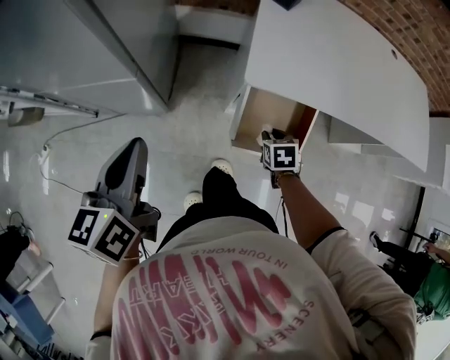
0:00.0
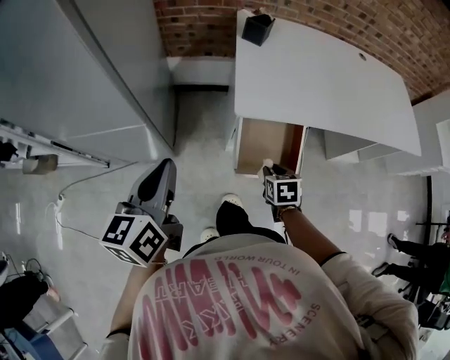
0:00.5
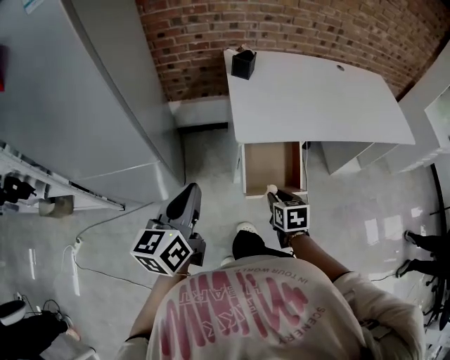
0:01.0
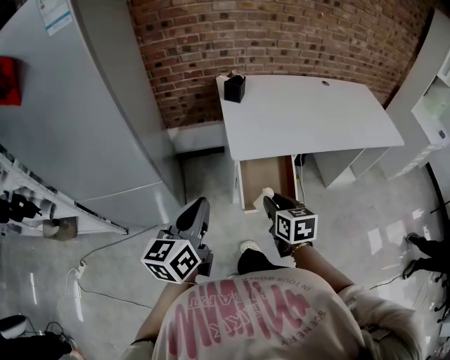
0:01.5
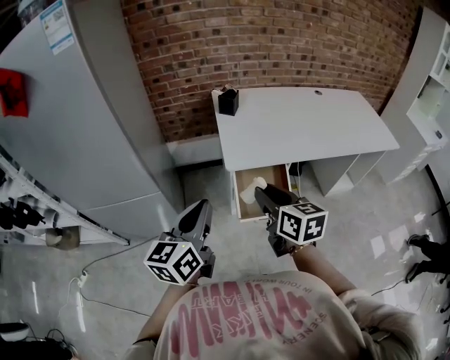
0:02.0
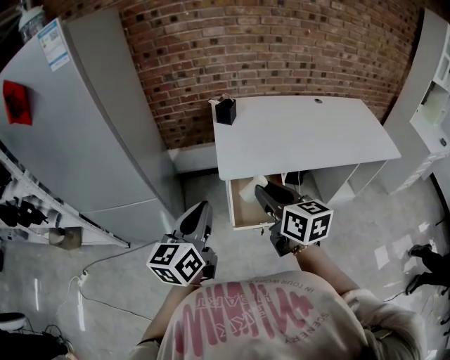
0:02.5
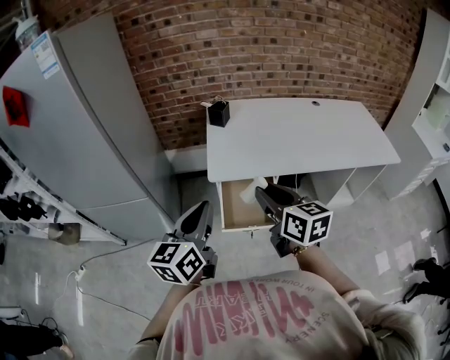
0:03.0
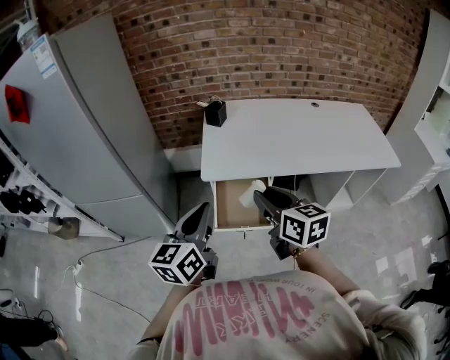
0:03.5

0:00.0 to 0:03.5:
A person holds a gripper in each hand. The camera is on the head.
0:00.0 to 0:02.0: The left gripper travels upward, to the right and backward by approximately 15 cm, and changes its angle by roughly 30 degrees, while the right gripper travels upward by about 35 cm, and tilts its fingers approximately 50 degrees upward.
0:02.0 to 0:03.5: The two grippers go some 15 cm to the right.

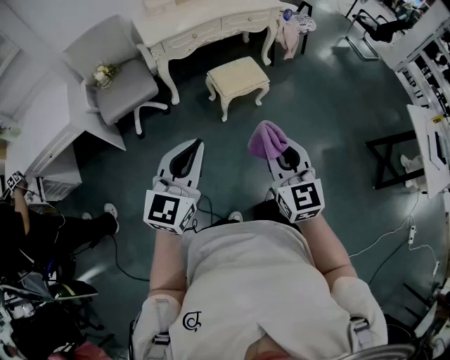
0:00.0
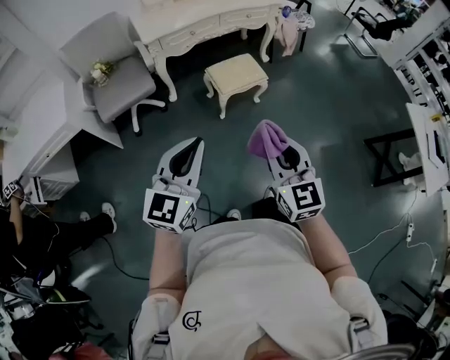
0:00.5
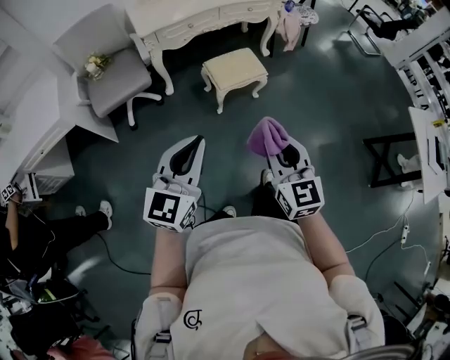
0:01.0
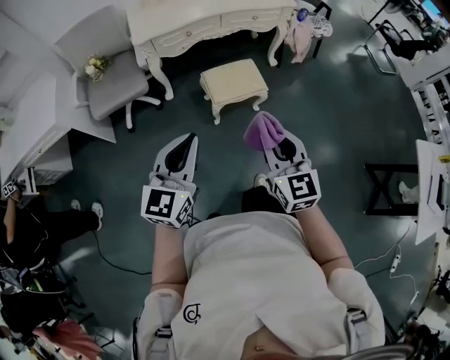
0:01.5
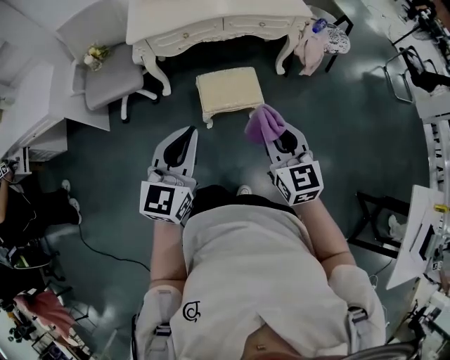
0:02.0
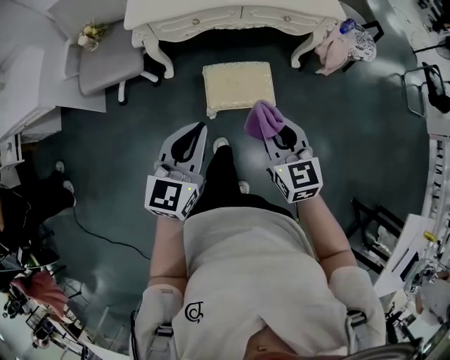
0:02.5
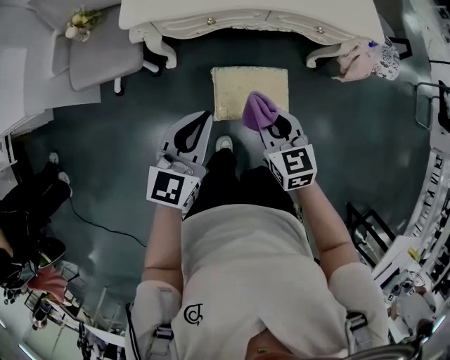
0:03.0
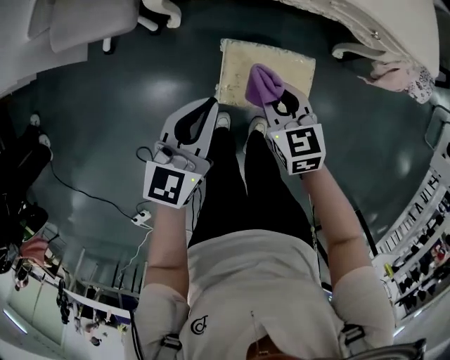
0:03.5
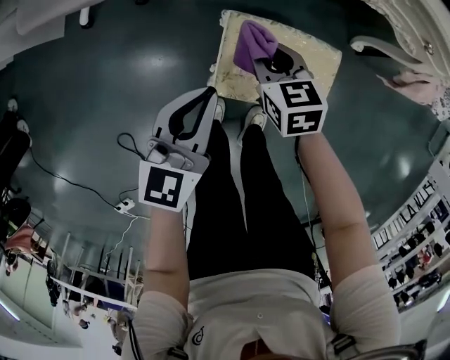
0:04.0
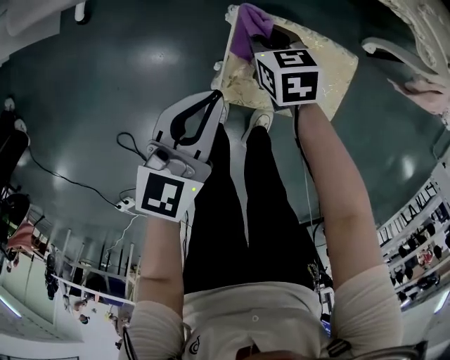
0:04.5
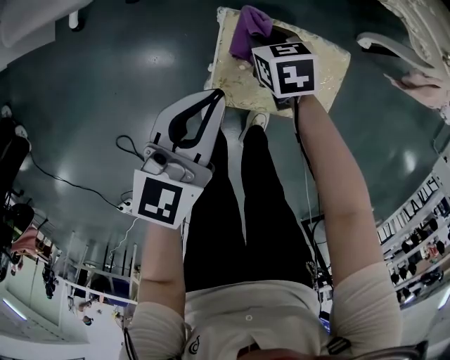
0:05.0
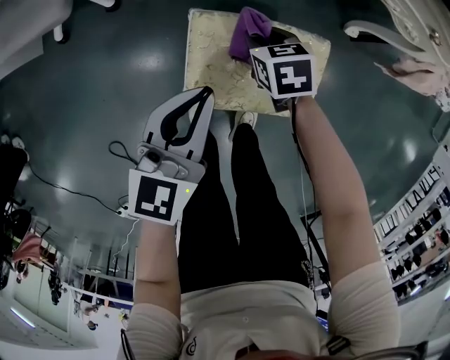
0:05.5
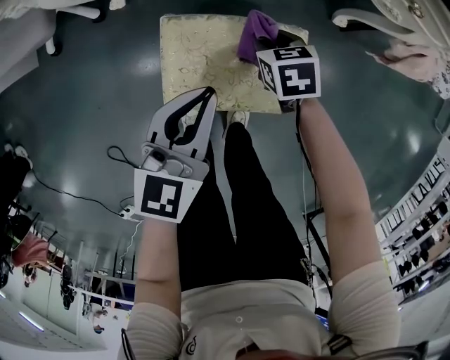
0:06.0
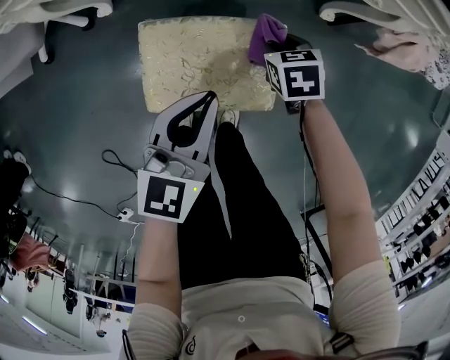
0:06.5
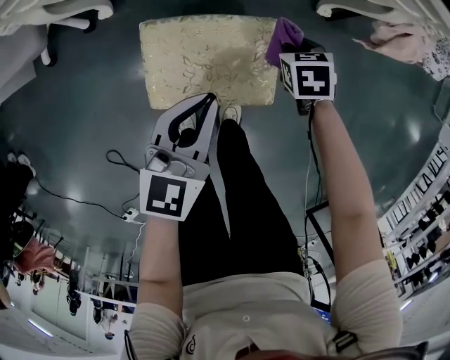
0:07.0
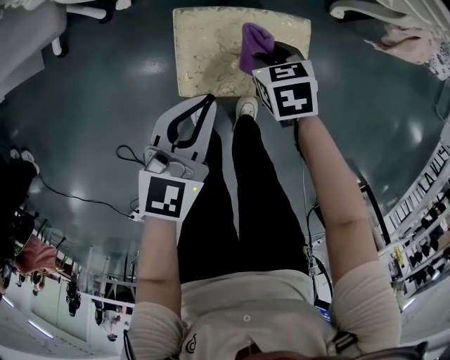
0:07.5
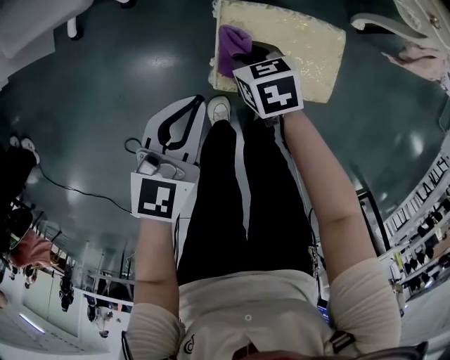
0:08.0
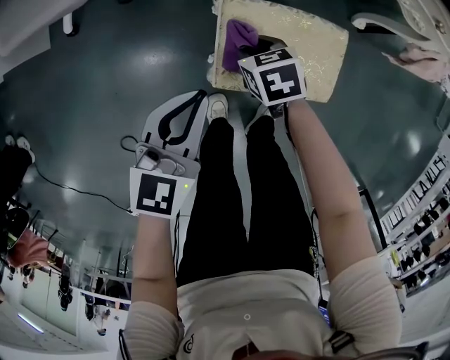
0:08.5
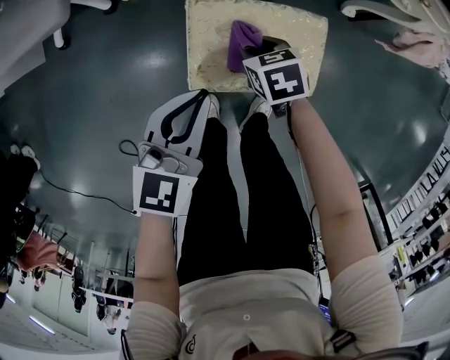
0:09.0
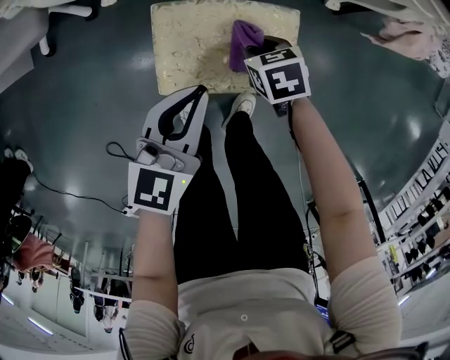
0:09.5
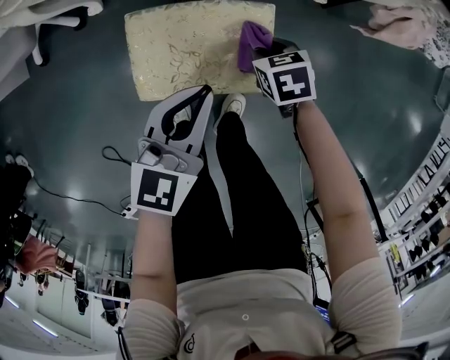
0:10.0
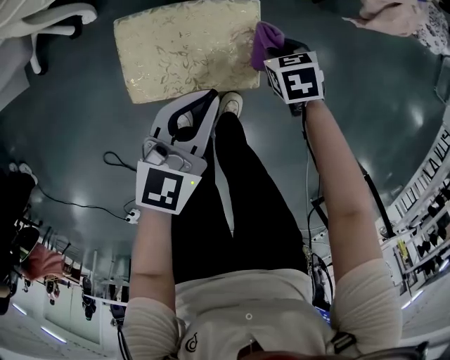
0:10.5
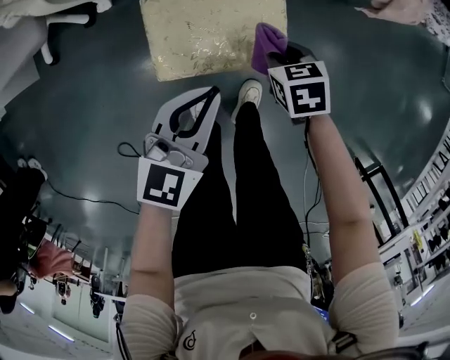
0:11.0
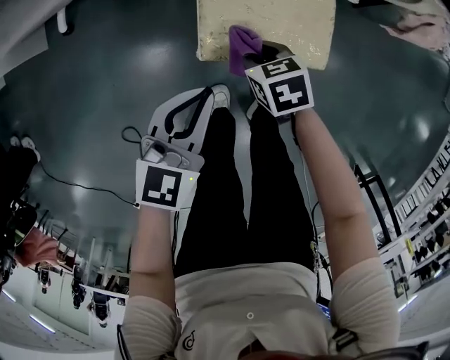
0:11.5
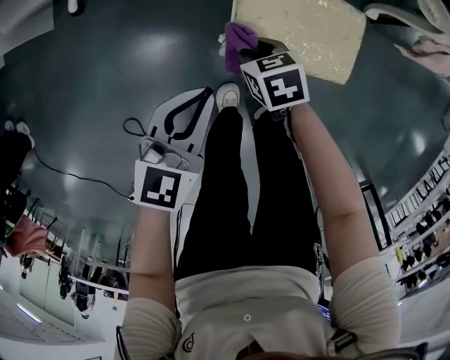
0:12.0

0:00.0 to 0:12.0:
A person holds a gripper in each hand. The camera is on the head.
0:00.0 to 0:02.0: Both grippers move forward and to the right, about 35 cm.
0:02.0 to 0:04.0: Both grippers move downward and forward, about 60 cm. The right gripper tilts its fingers some 30 degrees downward. The left gripper swivels about 20 degrees.
0:04.0 to 0:06.0: The right gripper is displaced to the right and downward by approximately 20 cm, and changes its angle by some 20 degrees; the left gripper heads to the right, covering some 15 cm.
0:06.0 to 0:08.0: The two grippers go approximately 20 cm to the left and backward.
0:08.0 to 0:10.0: Both grippers move to the right, approximately 25 cm.
0:10.0 to 0:12.0: The left gripper goes some 25 cm to the left and backward; the right gripper moves to the left, about 25 cm.

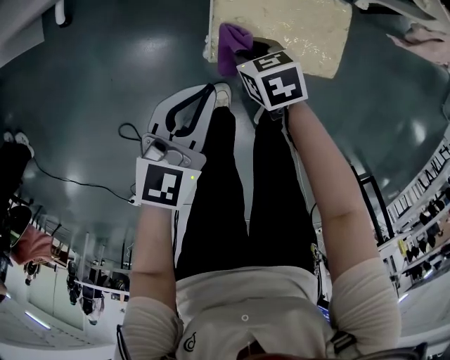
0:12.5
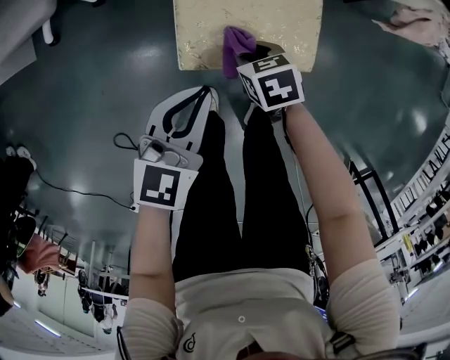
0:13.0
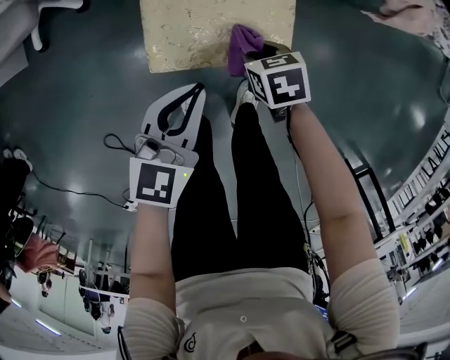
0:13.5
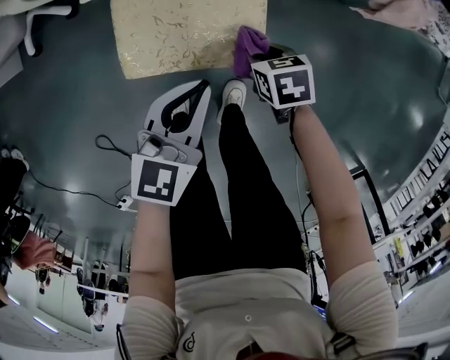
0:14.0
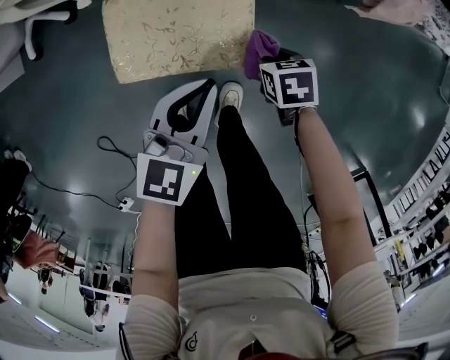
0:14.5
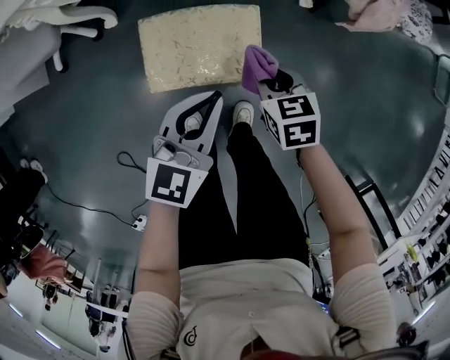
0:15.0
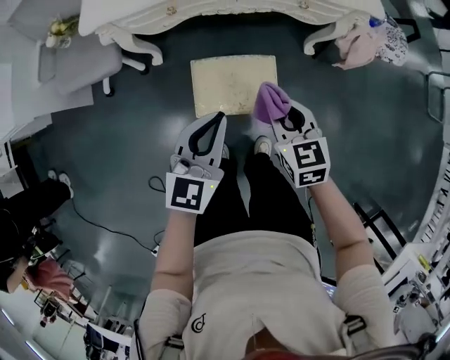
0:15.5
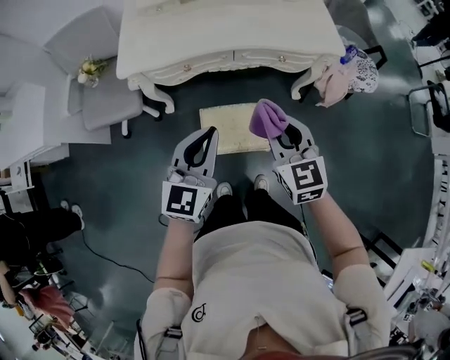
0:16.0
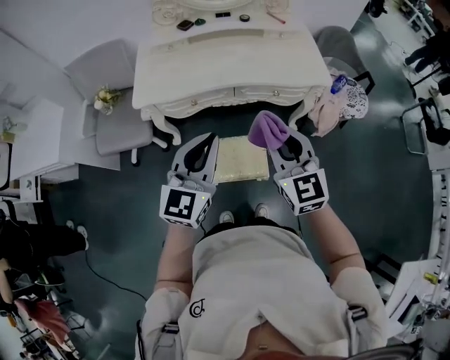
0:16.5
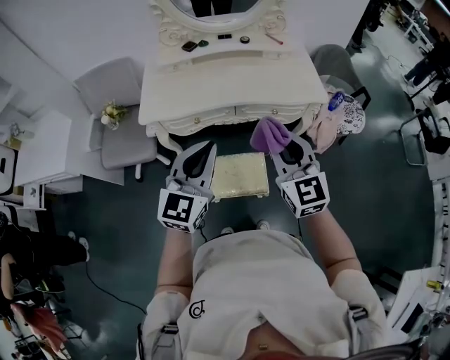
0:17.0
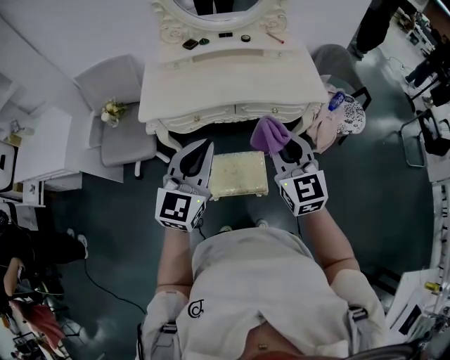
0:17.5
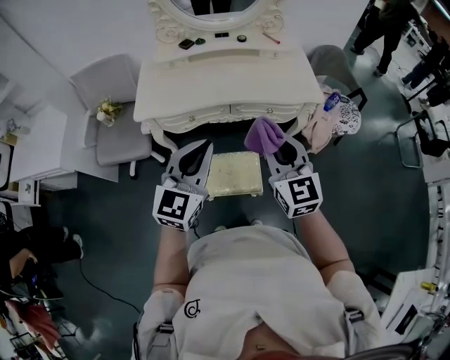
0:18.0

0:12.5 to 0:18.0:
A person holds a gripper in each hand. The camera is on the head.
0:12.5 to 0:14.5: Both grippers travel together to the right, roughly 30 cm.
0:14.5 to 0:16.0: The grippers both shift upward by approximately 50 cm. The left gripper swivels about 20 degrees. The right gripper points its fingers about 50 degrees further upward.
0:16.0 to 0:18.0: The grippers both shift upward by roughly 15 cm.

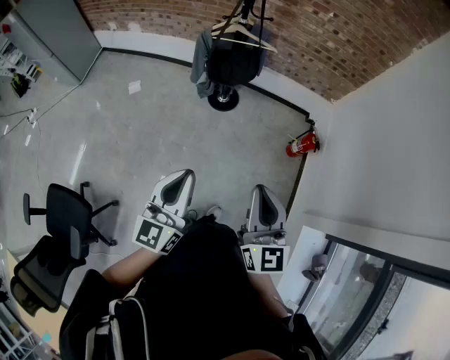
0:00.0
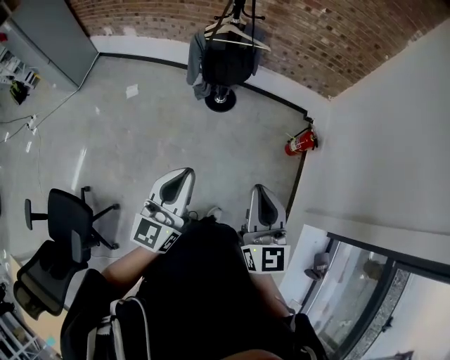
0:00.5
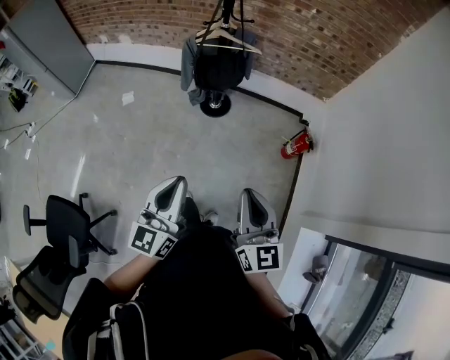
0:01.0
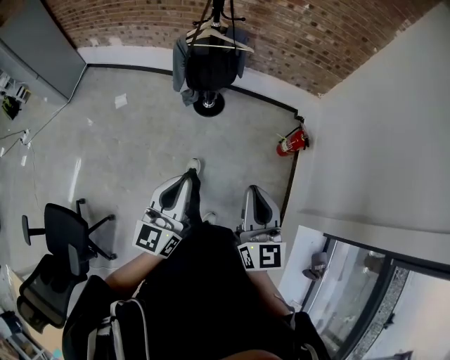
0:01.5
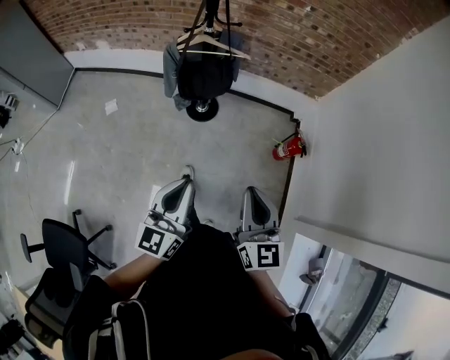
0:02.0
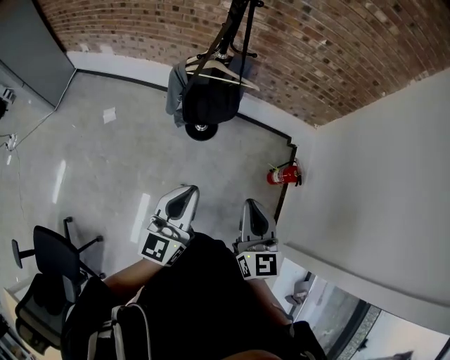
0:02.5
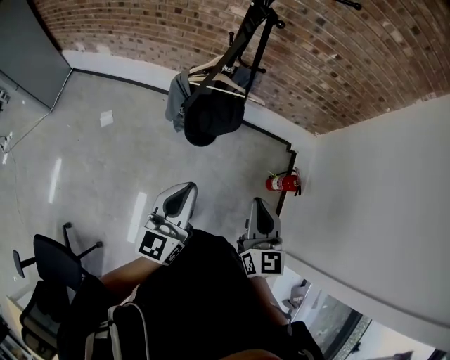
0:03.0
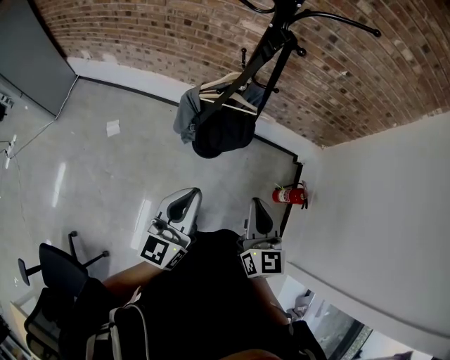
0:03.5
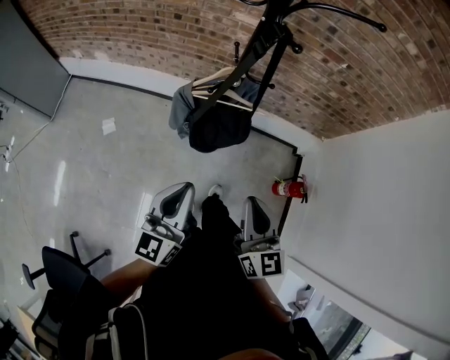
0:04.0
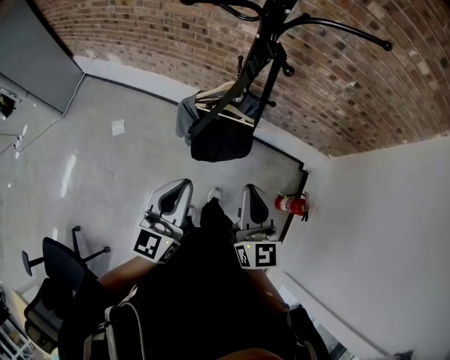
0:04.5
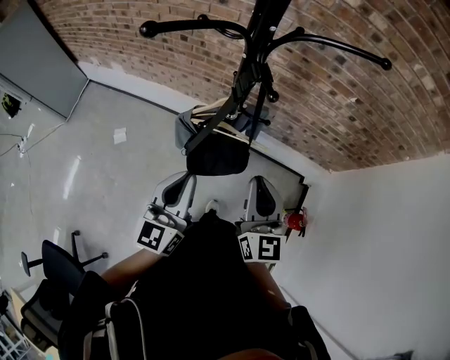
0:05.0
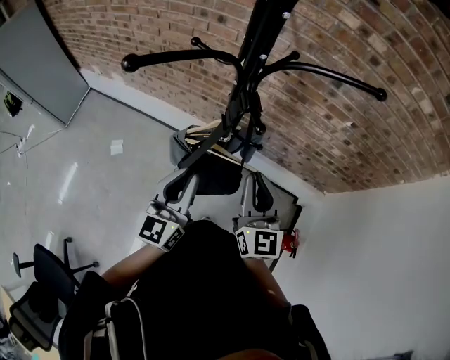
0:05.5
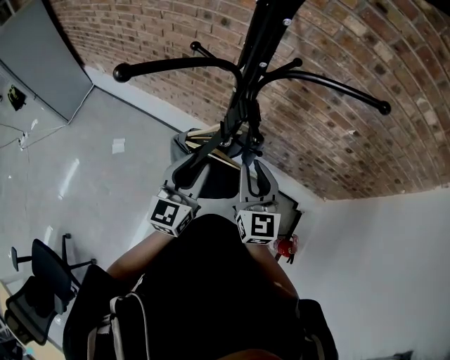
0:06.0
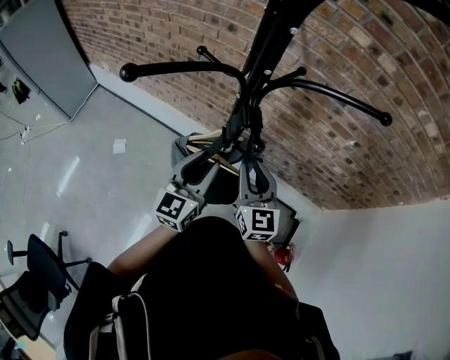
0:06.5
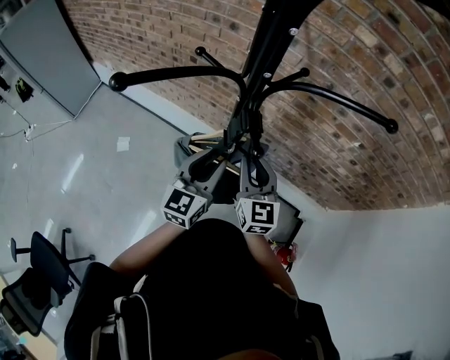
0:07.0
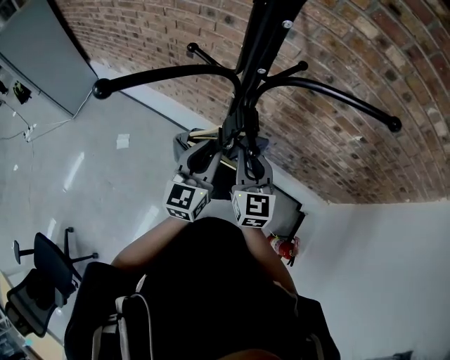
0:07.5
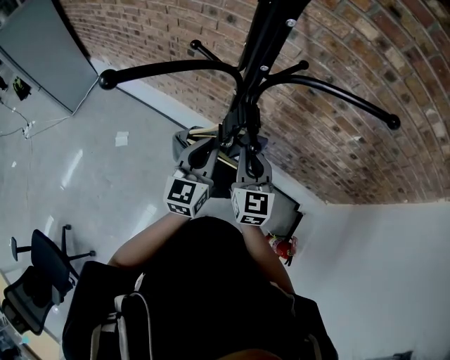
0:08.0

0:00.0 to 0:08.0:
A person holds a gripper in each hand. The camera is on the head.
0:00.0 to 0:02.0: The grippers both shift forward by approximately 15 cm.
0:02.0 to 0:04.0: The two grippers go about 30 cm forward and to the left.
0:04.0 to 0:06.0: The two grippers go about 30 cm forward. The left gripper opens.
0:06.0 to 0:08.0: Both grippers move forward, roughly 5 cm. The left gripper closes its fingers.
